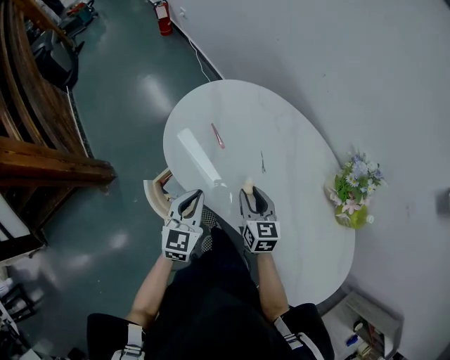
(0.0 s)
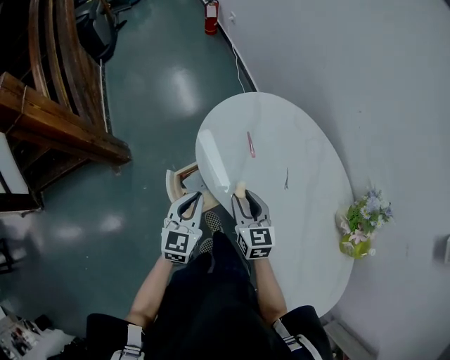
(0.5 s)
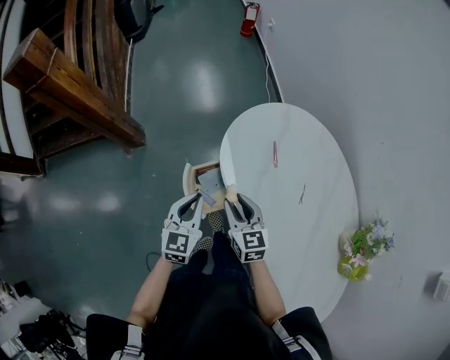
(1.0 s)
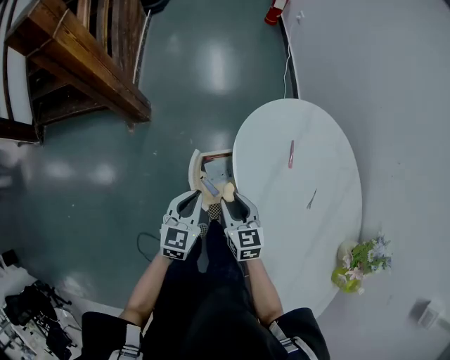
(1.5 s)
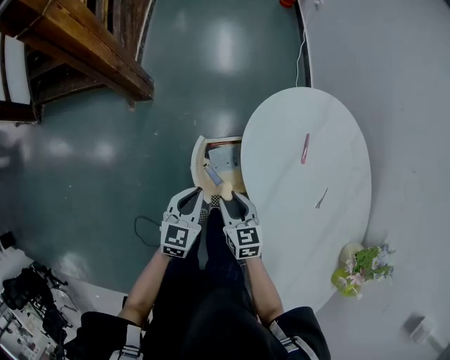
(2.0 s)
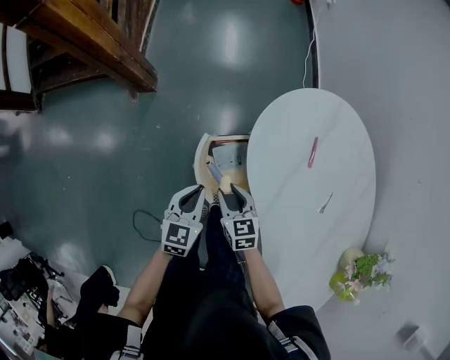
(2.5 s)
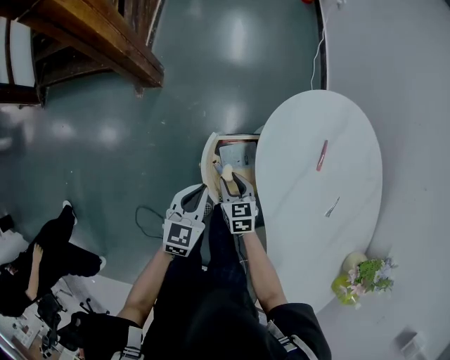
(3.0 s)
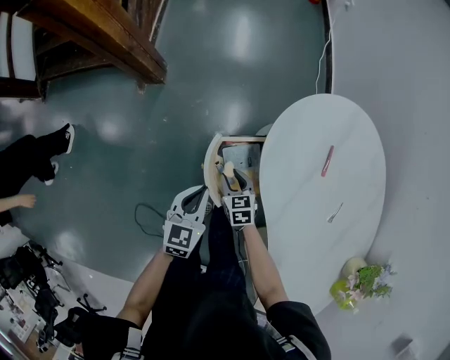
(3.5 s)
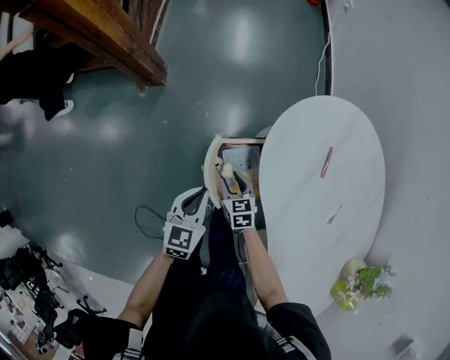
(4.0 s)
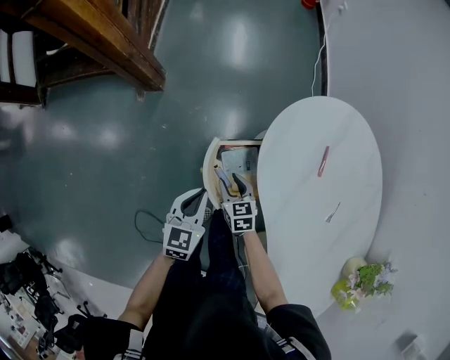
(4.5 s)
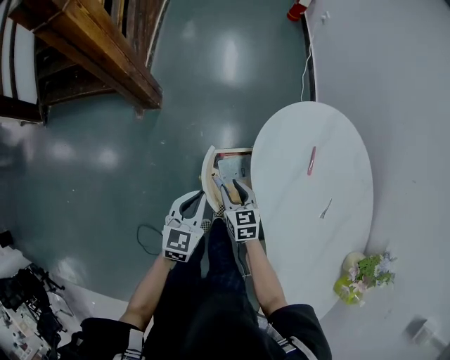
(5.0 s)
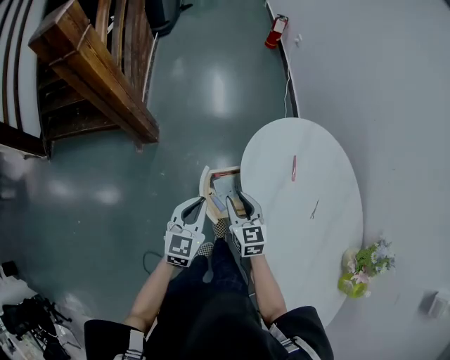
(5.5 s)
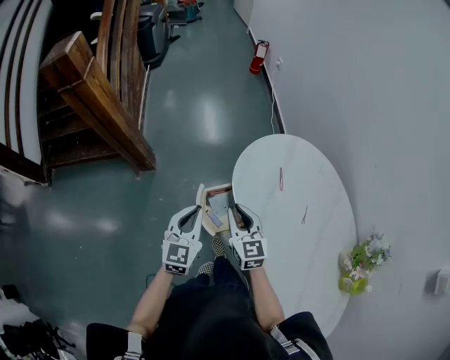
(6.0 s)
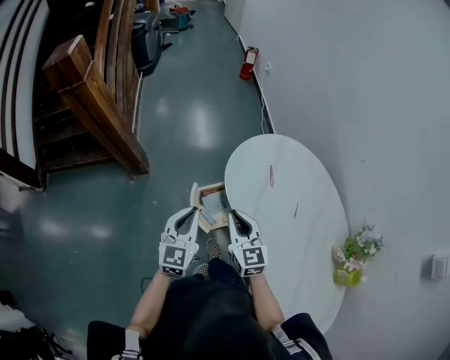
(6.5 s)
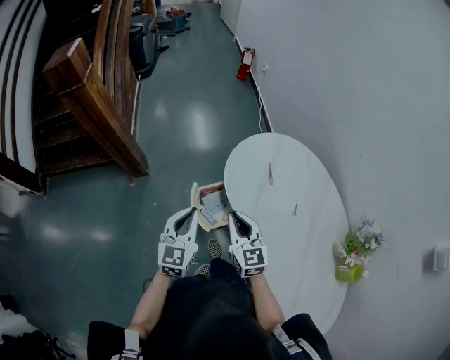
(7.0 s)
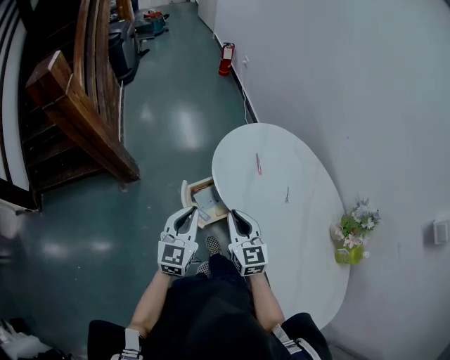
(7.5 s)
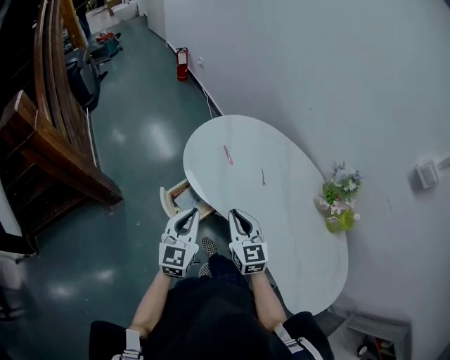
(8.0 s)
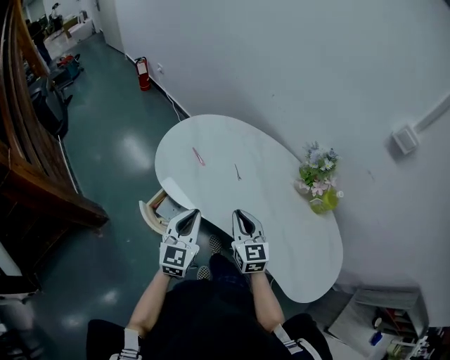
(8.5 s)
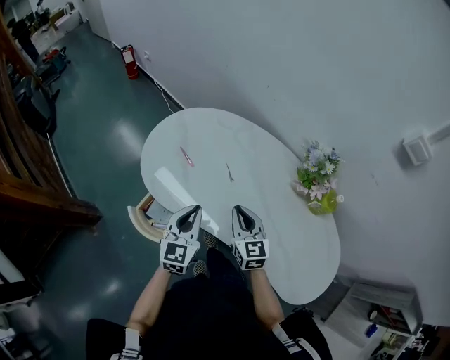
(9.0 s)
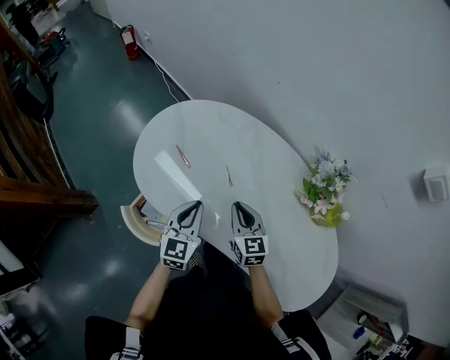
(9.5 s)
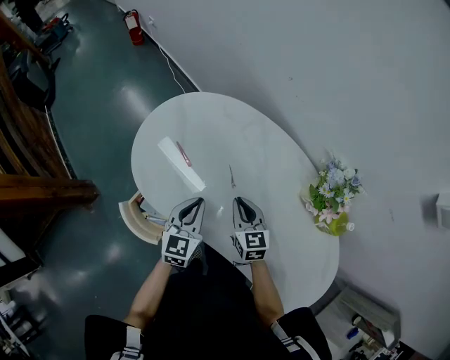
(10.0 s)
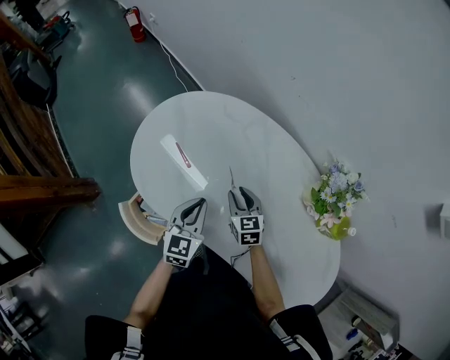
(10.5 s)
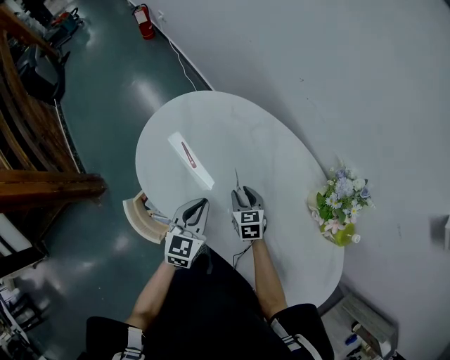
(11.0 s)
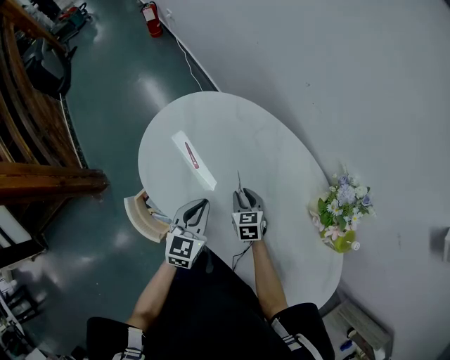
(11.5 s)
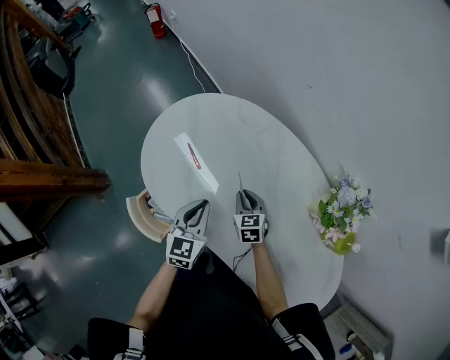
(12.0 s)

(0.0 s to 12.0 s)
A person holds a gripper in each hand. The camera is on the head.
0.0 s - 2.0 s: The right gripper shifts by roughly 30 cm, and rotates about 50 degrees; the left gripper changes place by some 25 cm, and swivels roughly 30 degrees.
2.0 s - 4.0 s: The left gripper shifts by roughly 5 cm. Meanwhile the right gripper travels downward and forward by some 15 cm.
4.0 s - 6.0 s: The grippers both shift upward by approximately 30 cm. The right gripper turns by roughly 30 degrees, and closes its fingers; the left gripper turns by roughly 20 degrees.
6.0 s - 8.0 s: The right gripper is displaced backward and to the right by some 20 cm, and turns by some 20 degrees; the left gripper heads to the right and backward, covering roughly 15 cm, and turns by about 20 degrees.
8.0 s - 10.0 s: The grippers both shift forward, to the right and downward by approximately 30 cm. The left gripper changes its angle by some 20 degrees. The right gripper rotates about 20 degrees.
10.0 s - 12.0 s: The right gripper is displaced downward and forward by about 10 cm.

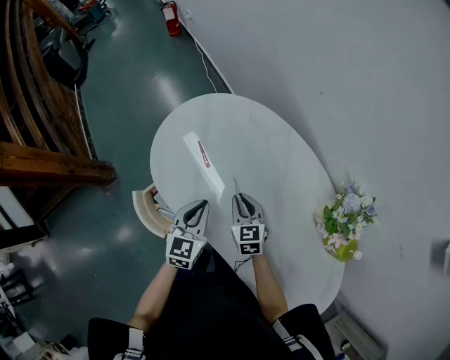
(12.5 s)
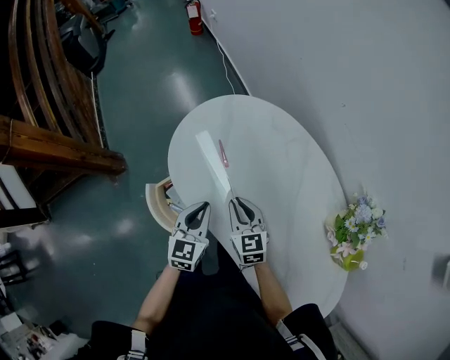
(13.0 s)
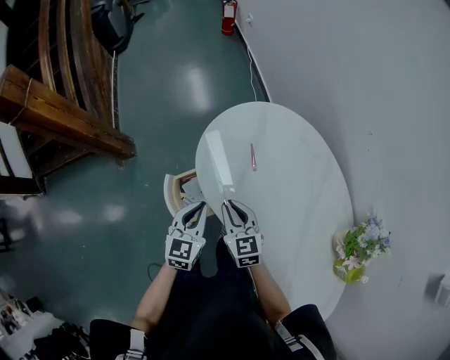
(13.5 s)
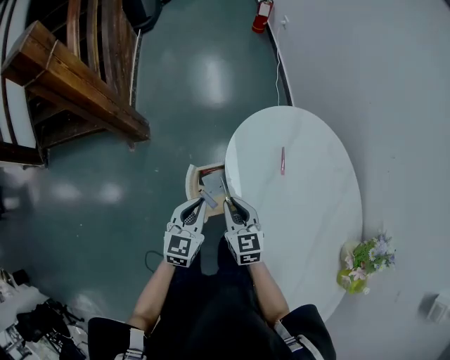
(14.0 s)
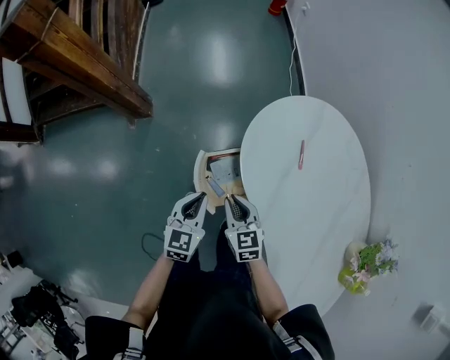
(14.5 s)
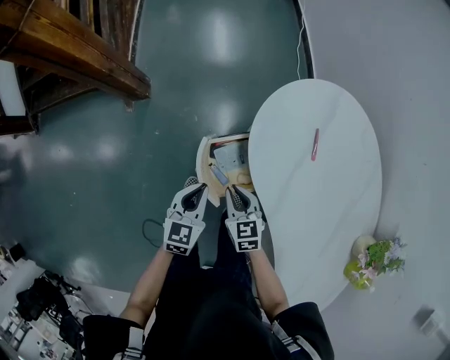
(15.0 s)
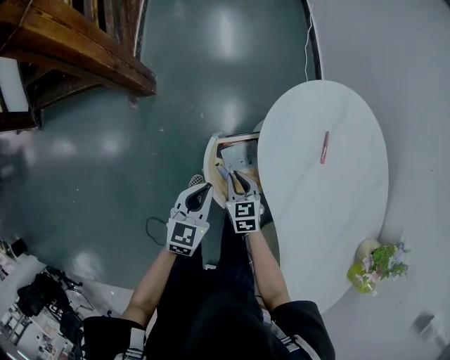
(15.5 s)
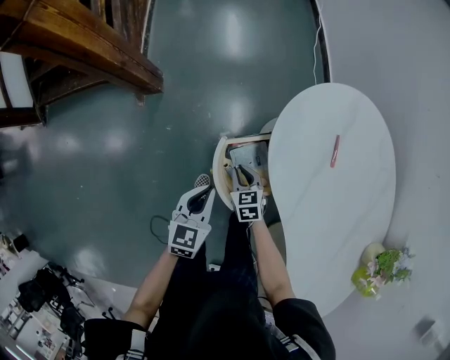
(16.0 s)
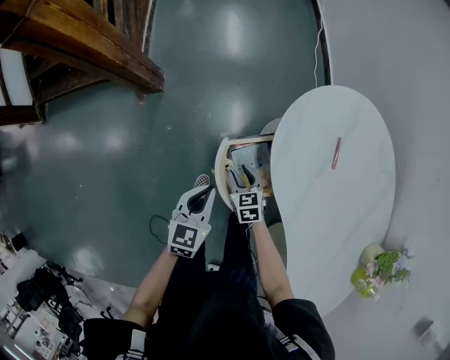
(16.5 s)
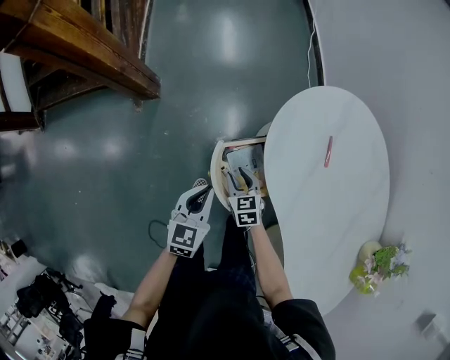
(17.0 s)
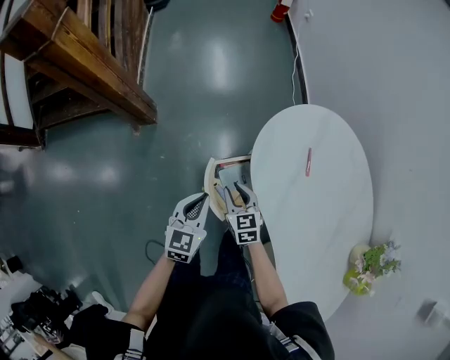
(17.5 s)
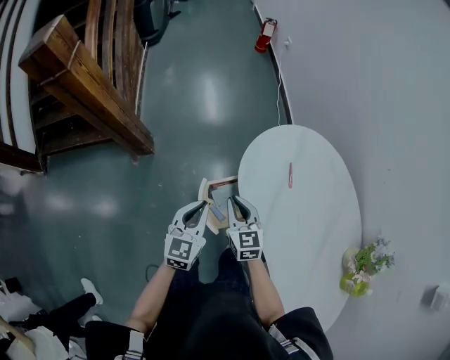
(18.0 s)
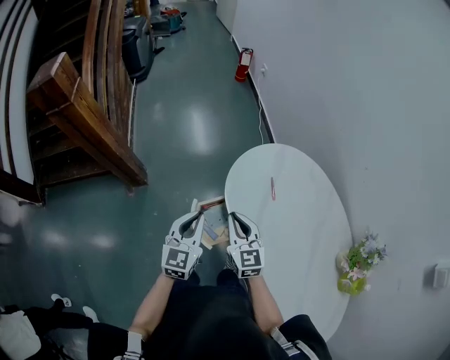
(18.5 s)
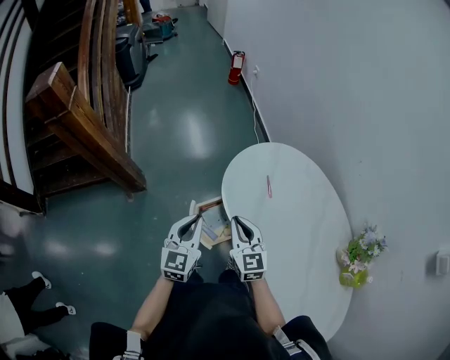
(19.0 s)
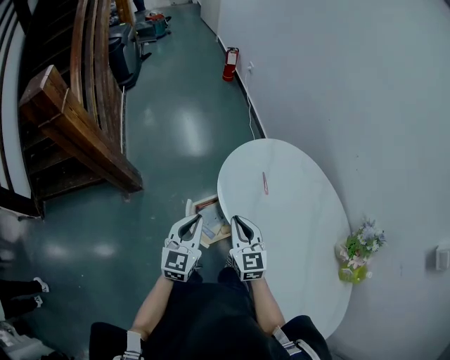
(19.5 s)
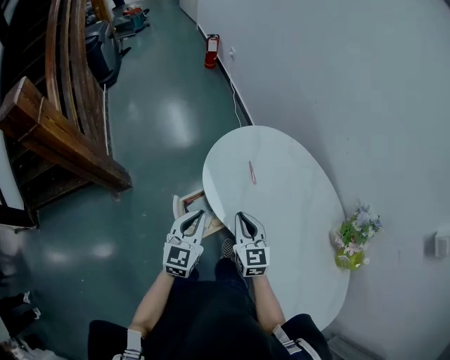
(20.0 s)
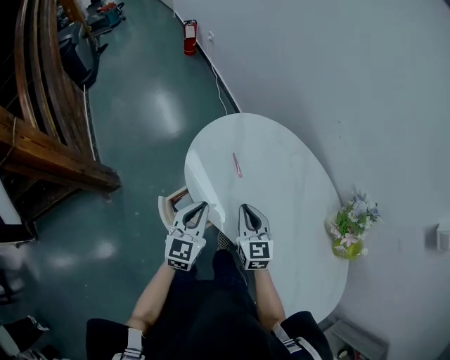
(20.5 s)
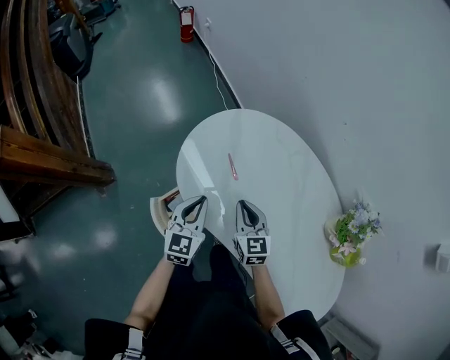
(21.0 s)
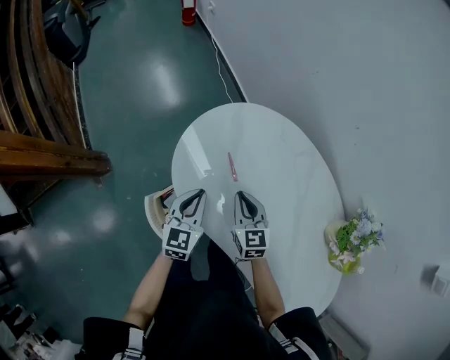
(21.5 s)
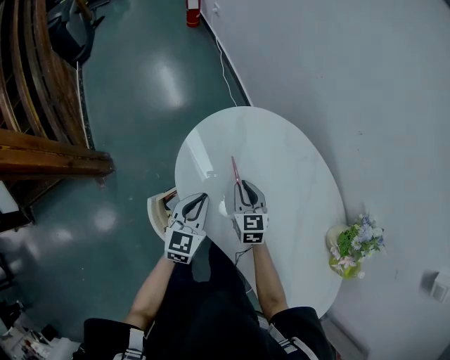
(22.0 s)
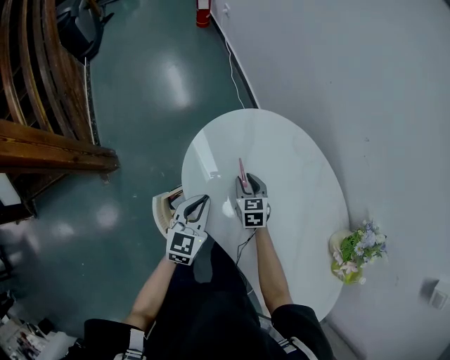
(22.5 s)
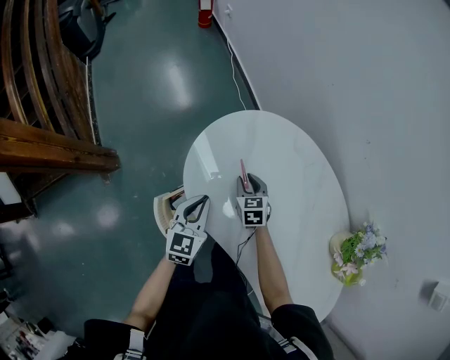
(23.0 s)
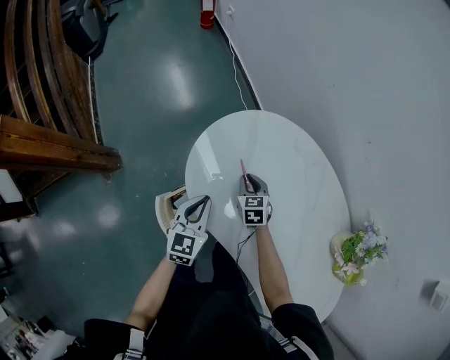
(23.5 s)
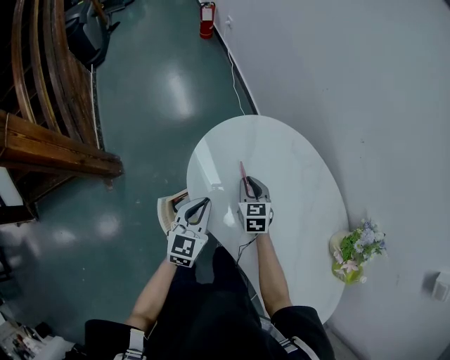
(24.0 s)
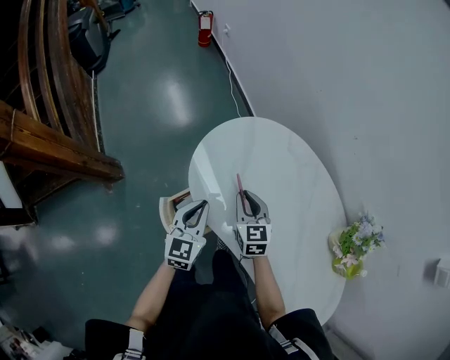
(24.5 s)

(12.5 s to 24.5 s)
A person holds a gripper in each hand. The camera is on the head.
12.5 s - 14.5 s: The left gripper moves approximately 35 cm, and turns by some 30 degrees. Meanwhile the right gripper reaches some 5 cm upward, then returns, and turns by roughly 30 degrees.
14.5 s - 16.5 s: The left gripper moves downward and to the left, roughly 10 cm. The right gripper shifts roughly 20 cm downward, and opens.
16.5 s - 18.5 s: The right gripper travels upward by roughly 35 cm, tilts its fingers approximately 30 degrees upward, and closes up. The left gripper heads upward, covering approximately 25 cm, and turns by some 20 degrees.
18.5 s - 20.5 s: Both grippers move to the right, approximately 15 cm. The right gripper turns by some 20 degrees.
20.5 s - 22.5 s: The left gripper shifts some 15 cm forward and downward; the right gripper is displaced forward and downward by approximately 25 cm, and rotates about 20 degrees.
22.5 s - 24.5 s: The left gripper travels upward by about 5 cm; the right gripper travels upward and backward by roughly 15 cm.

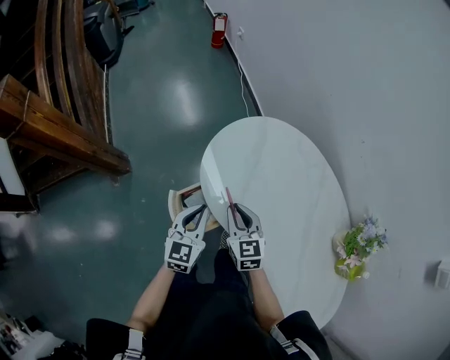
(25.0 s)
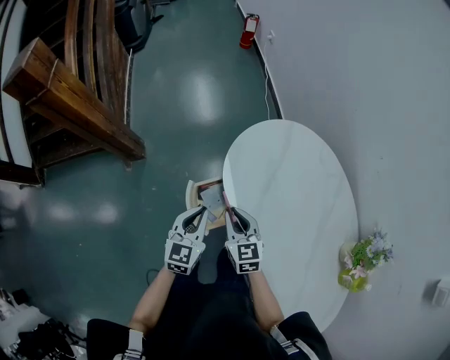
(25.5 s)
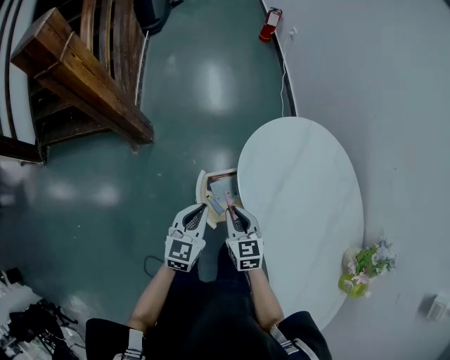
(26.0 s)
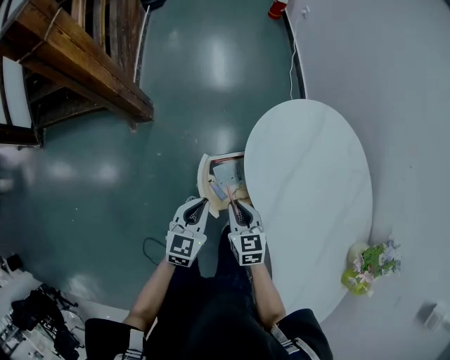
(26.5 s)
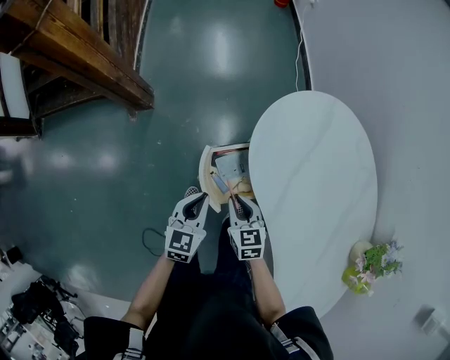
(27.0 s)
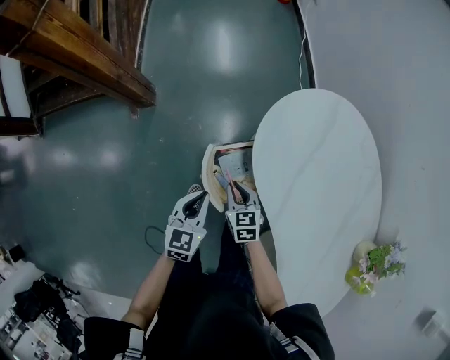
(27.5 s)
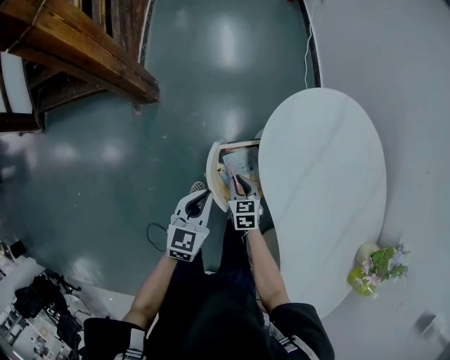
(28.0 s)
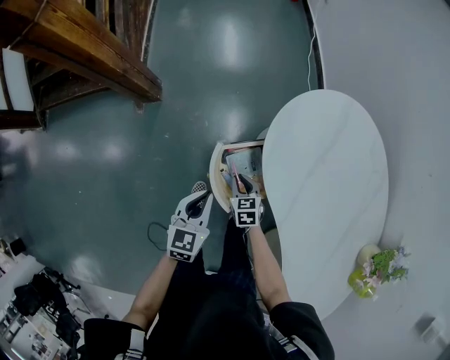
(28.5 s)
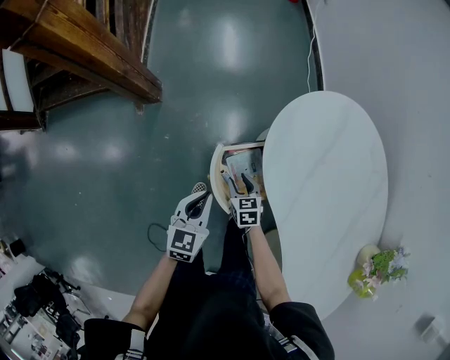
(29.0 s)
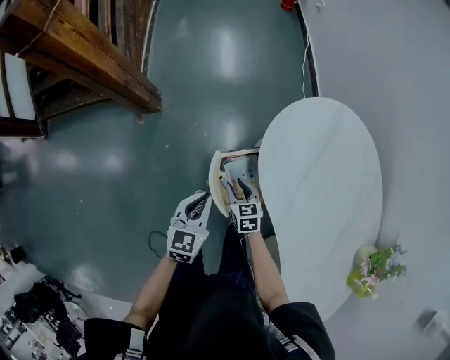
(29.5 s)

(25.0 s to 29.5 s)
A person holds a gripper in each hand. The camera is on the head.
25.0 s - 27.0 s: The left gripper travels to the left, downward and backward by roughly 20 cm. Meanwhile the right gripper heads downward and to the left, covering approximately 20 cm, and rotates some 20 degrees.
27.0 s - 29.5 s: The right gripper moves downward, approximately 10 cm, and opens its fingers.
